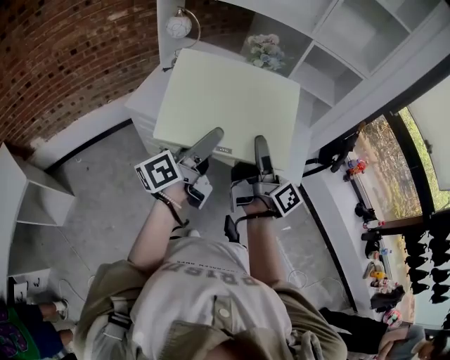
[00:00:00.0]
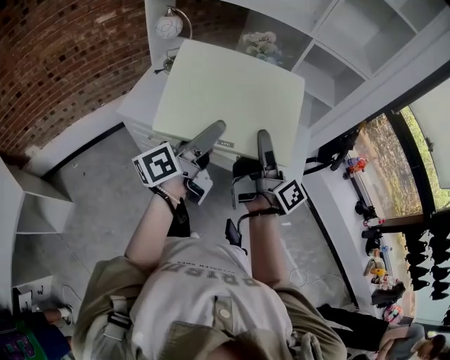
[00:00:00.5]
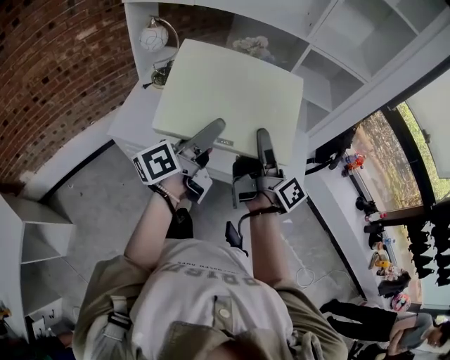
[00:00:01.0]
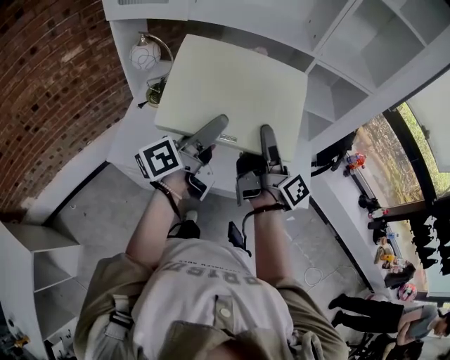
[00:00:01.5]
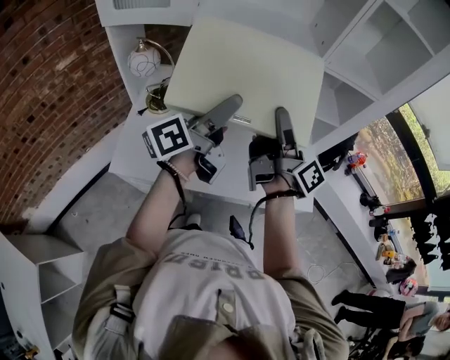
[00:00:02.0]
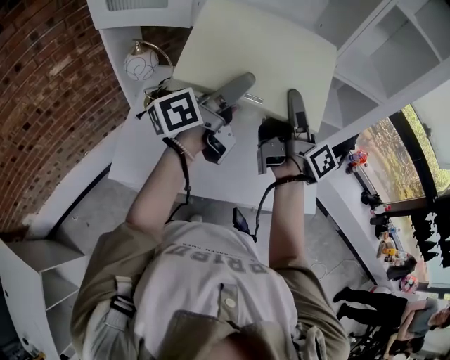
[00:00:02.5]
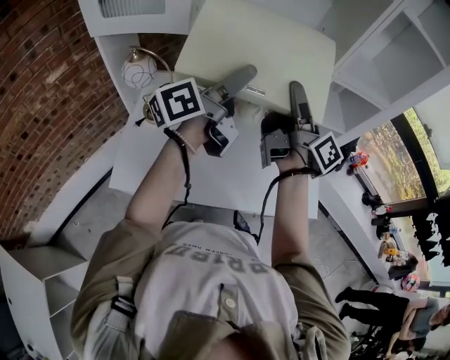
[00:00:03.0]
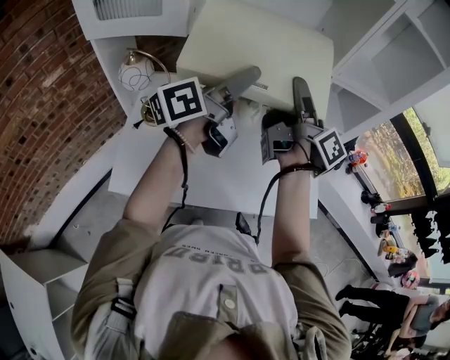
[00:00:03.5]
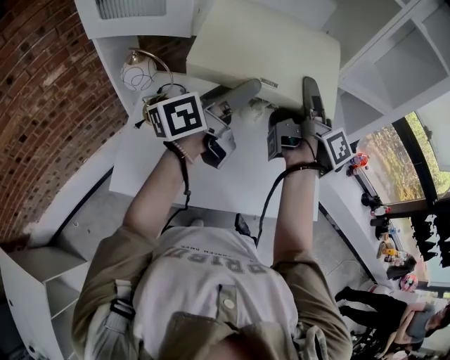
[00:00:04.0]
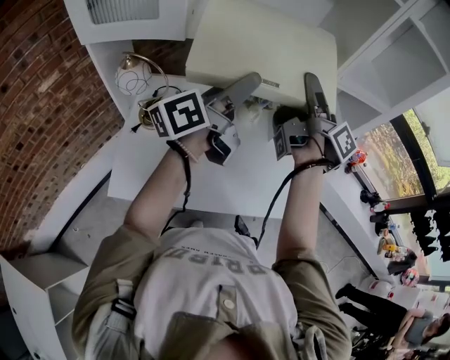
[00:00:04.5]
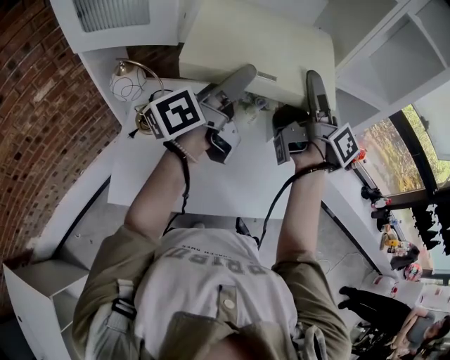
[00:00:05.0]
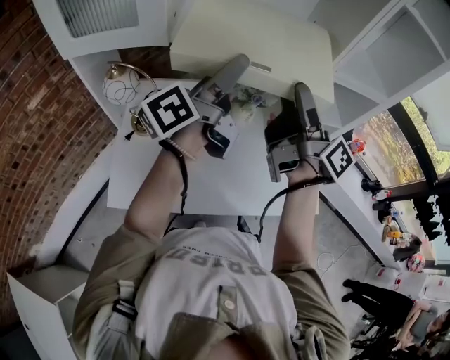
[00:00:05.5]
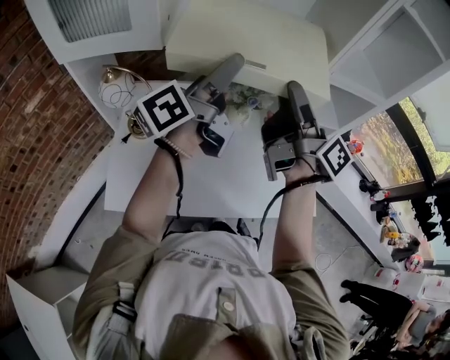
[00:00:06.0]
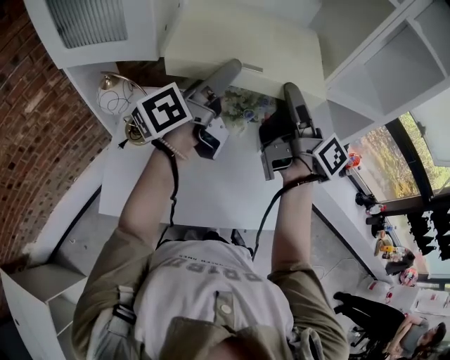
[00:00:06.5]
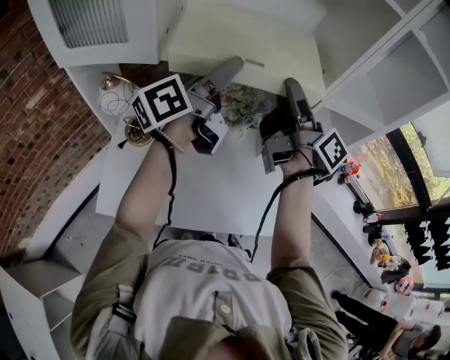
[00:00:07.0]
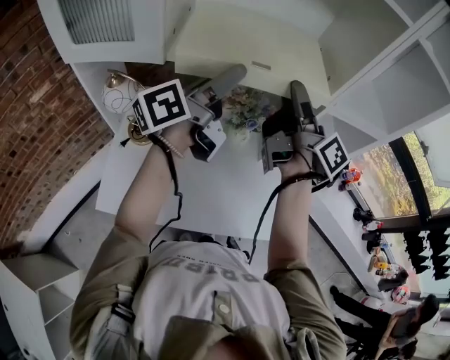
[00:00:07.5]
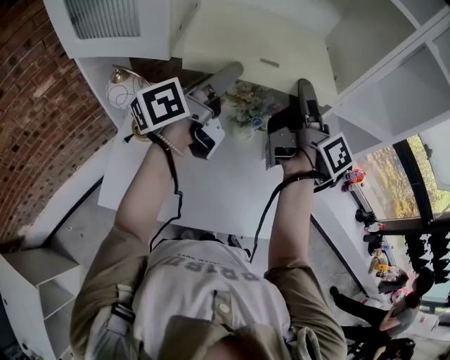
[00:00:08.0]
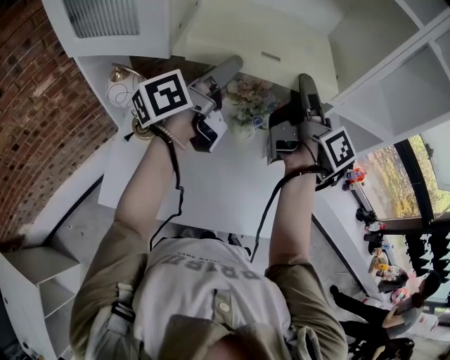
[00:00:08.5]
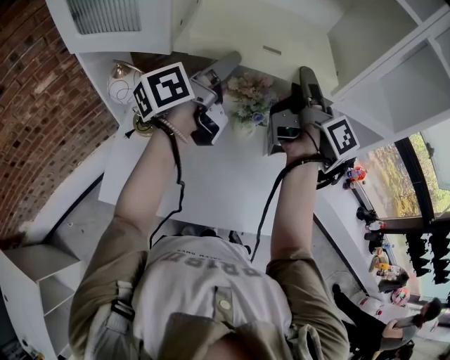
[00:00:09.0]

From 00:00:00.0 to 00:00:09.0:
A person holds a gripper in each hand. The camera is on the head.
From 00:00:00.0 to 00:00:02.0: Both grippers move forward, some 25 cm.
From 00:00:02.0 to 00:00:04.5: Both grippers travel together forward, some 15 cm.
From 00:00:04.5 to 00:00:07.0: The right gripper ends up about 5 cm from where it was; the left gripper is displaced forward by some 10 cm.
From 00:00:07.0 to 00:00:09.0: The grippers stay close to where they were, moving slightly.

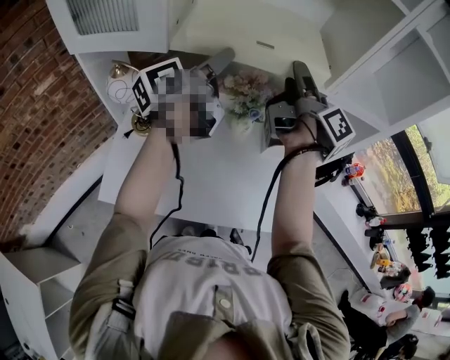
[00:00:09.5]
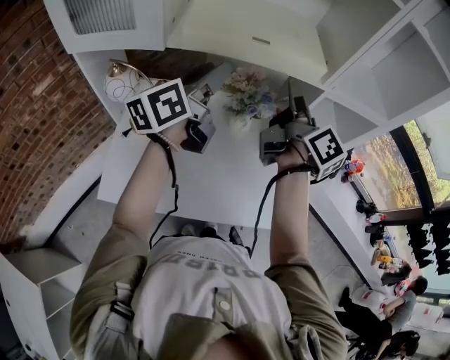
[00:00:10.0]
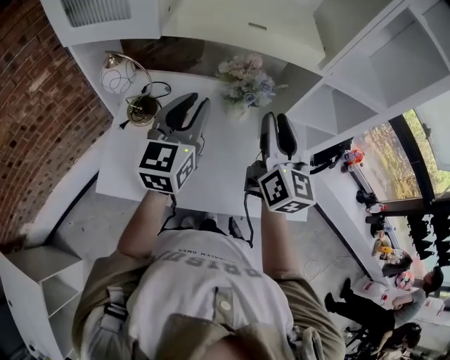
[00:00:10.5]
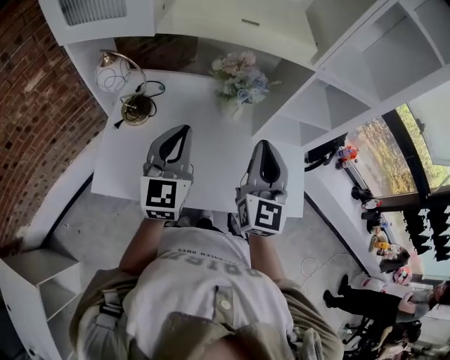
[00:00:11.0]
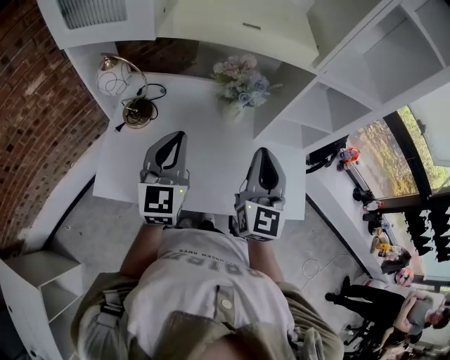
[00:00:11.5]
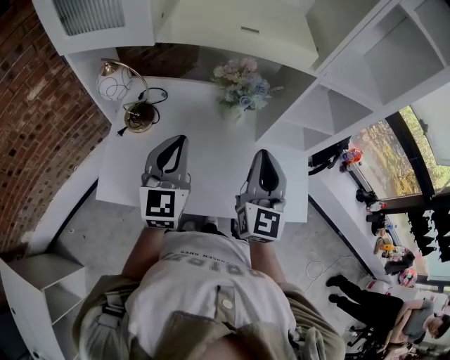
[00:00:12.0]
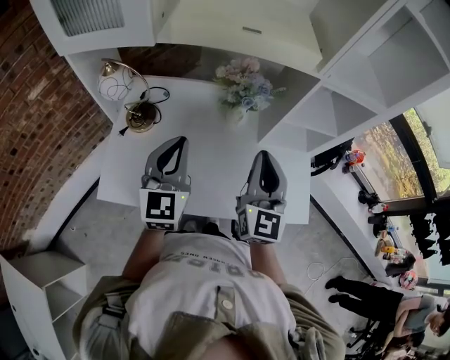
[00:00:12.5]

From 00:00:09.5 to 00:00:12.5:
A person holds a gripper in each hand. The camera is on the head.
From 00:00:09.5 to 00:00:11.0: The two grippers go about 20 cm backward and downward. The left gripper rotates around the line of its fingers by roughly 60 degrees, clockwise from behind, and closes up. Meanwhile the right gripper rolls counterclockwise, seen from behind, by about 80 degrees, and closes up.
From 00:00:11.0 to 00:00:12.5: There are only small adjustments of the grippers.

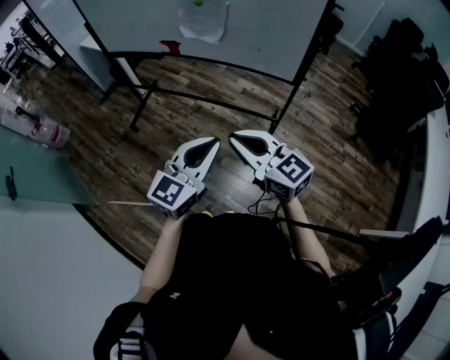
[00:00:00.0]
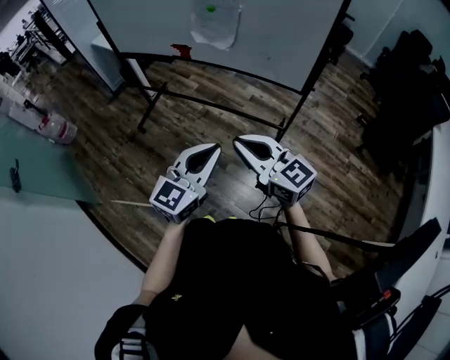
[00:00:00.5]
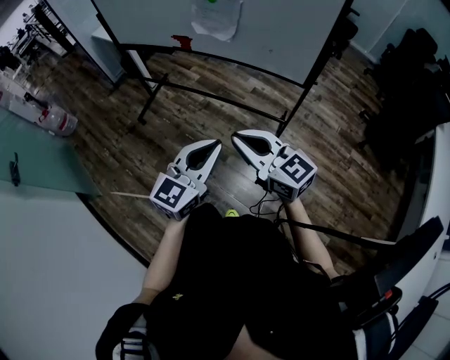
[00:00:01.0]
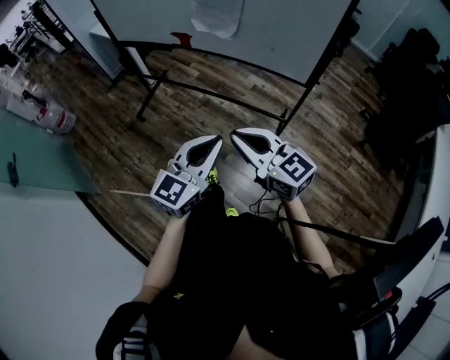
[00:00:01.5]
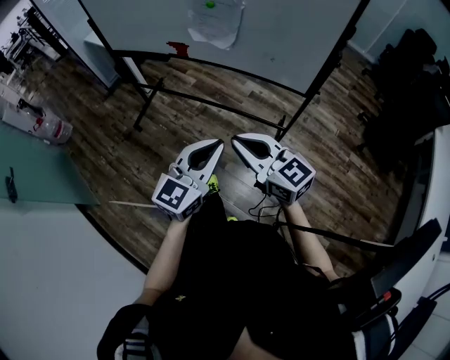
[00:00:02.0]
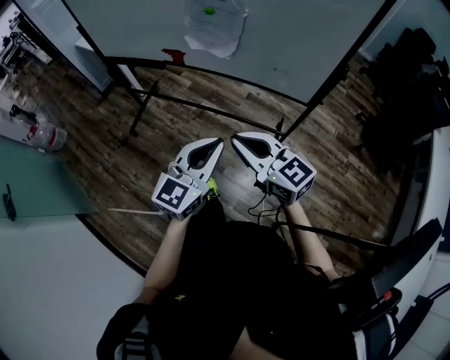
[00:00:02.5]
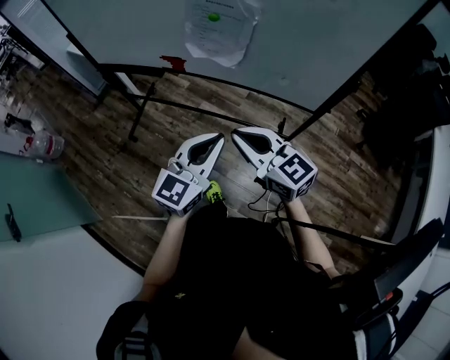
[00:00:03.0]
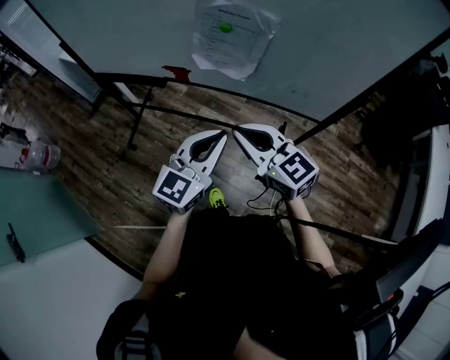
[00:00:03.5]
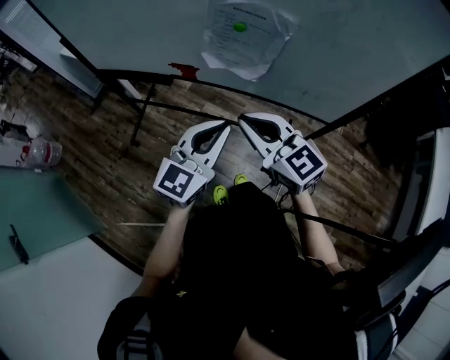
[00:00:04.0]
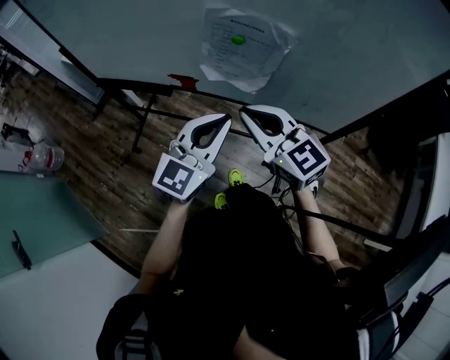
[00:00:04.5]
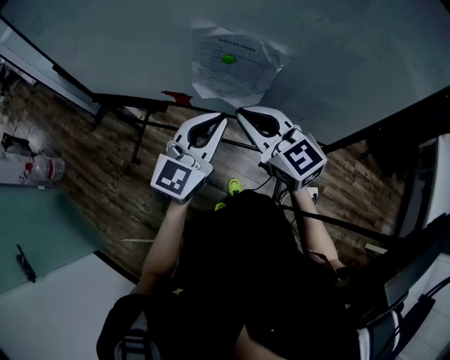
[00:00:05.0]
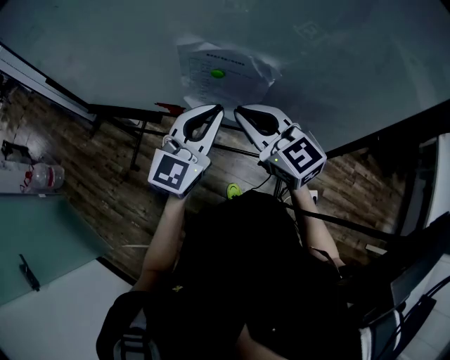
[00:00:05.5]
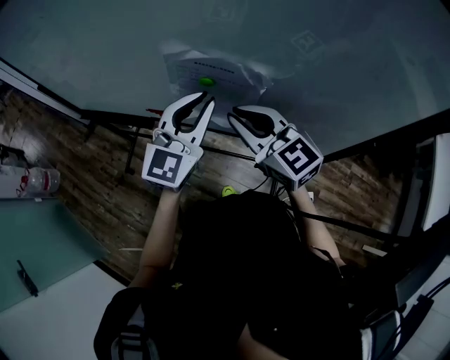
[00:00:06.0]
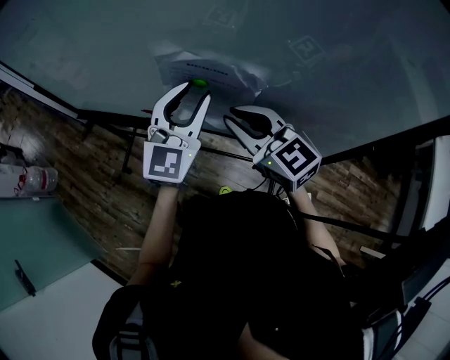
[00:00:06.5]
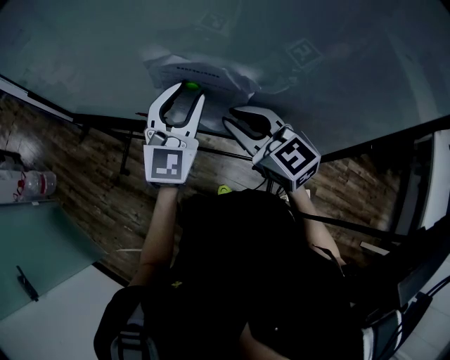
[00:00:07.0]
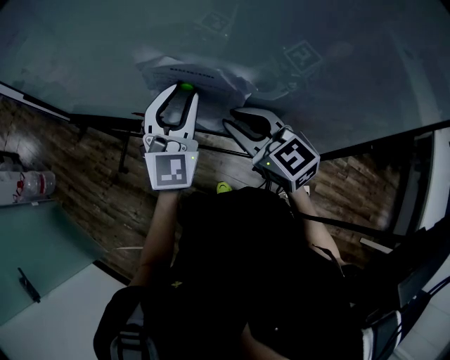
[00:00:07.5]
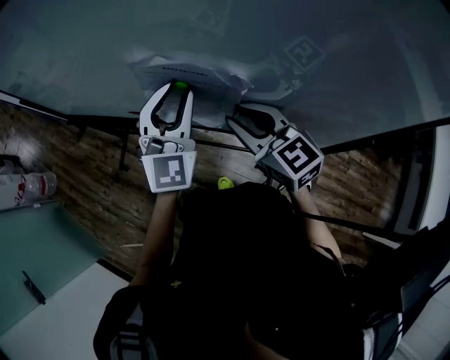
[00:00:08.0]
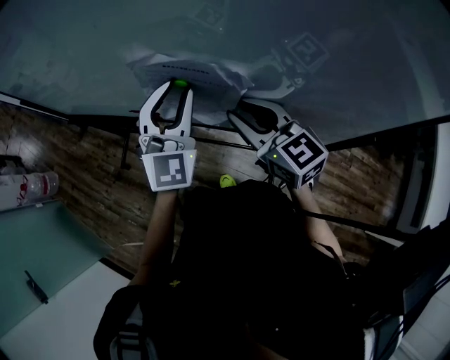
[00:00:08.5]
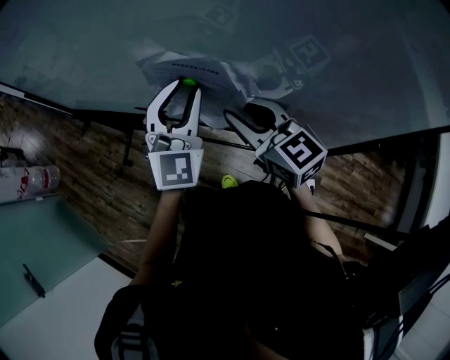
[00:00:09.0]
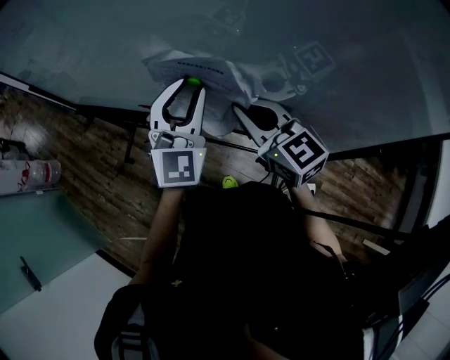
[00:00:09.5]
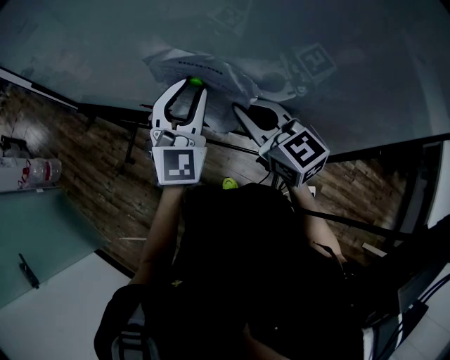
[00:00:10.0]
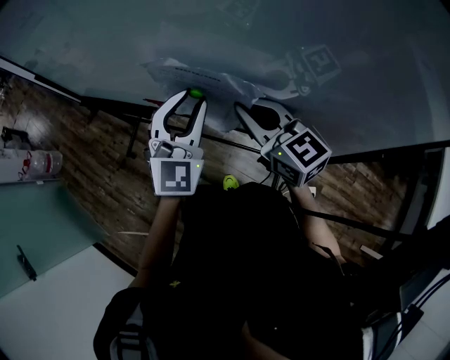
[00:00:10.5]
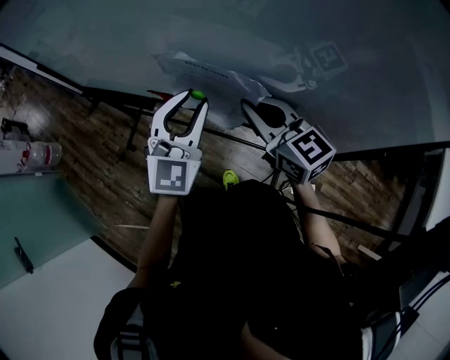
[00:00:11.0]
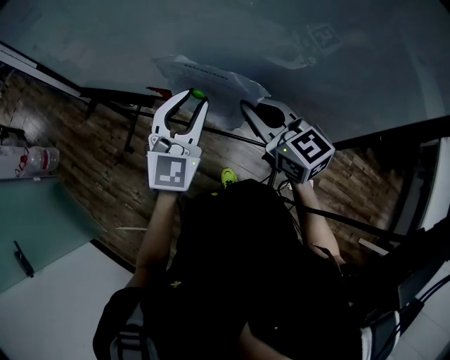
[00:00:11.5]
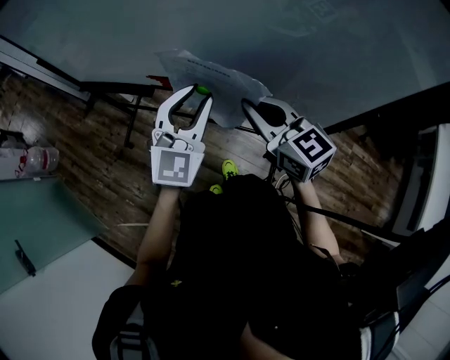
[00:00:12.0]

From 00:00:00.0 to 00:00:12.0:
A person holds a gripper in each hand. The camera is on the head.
From 00:00:00.0 to 00:00:02.0: The grippers both shift forward by about 5 cm.
From 00:00:02.0 to 00:00:04.0: Both grippers move forward, roughly 25 cm.
From 00:00:04.0 to 00:00:06.0: Both grippers move forward, approximately 20 cm.
From 00:00:06.0 to 00:00:08.0: The right gripper shifts by roughly 5 cm; the left gripper changes its angle by about 20 degrees.
From 00:00:08.0 to 00:00:10.0: The right gripper closes up.
From 00:00:10.0 to 00:00:12.0: There are only small adjustments of the grippers.

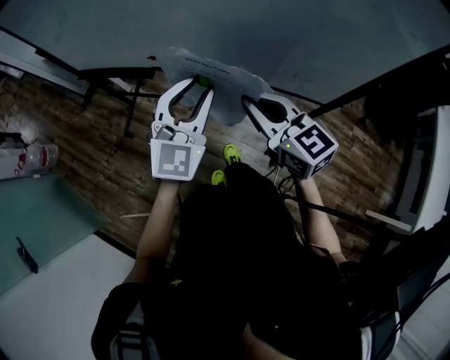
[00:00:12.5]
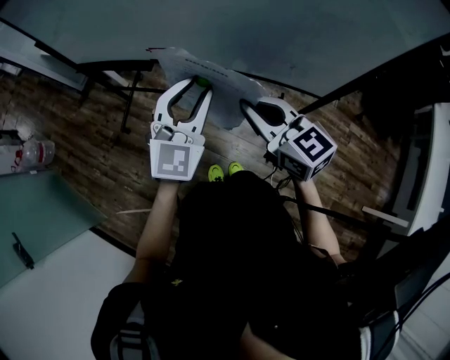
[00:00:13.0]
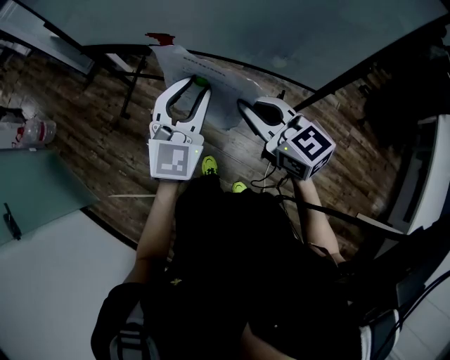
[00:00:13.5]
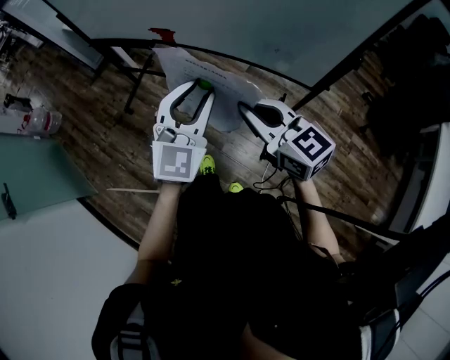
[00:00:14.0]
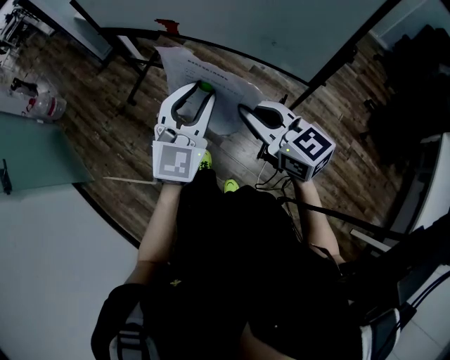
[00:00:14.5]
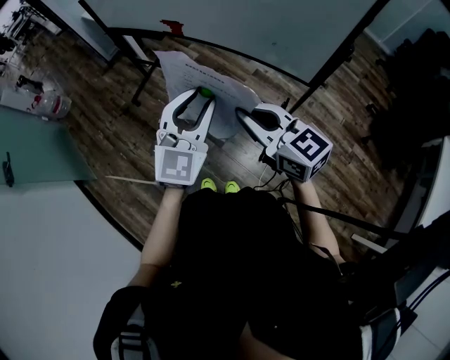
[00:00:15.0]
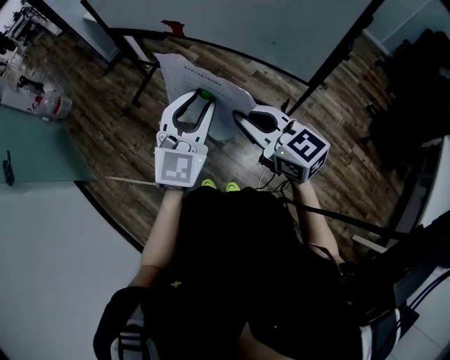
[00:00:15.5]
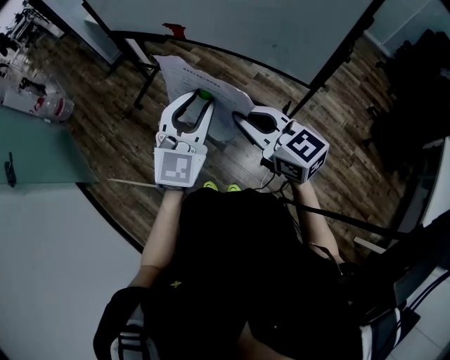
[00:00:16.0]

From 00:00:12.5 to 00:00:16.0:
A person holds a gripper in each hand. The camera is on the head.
From 00:00:12.5 to 00:00:14.5: Both grippers travel together backward, roughly 20 cm.
From 00:00:14.5 to 00:00:16.0: The grippers move only a little.
